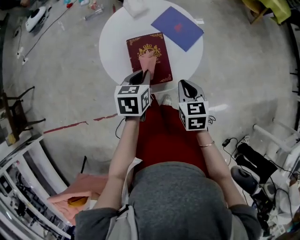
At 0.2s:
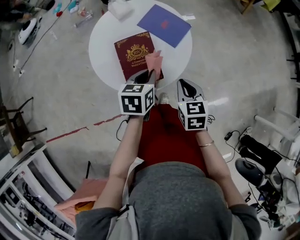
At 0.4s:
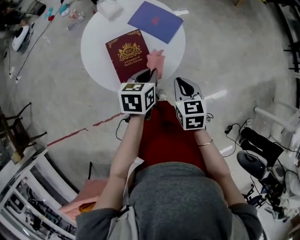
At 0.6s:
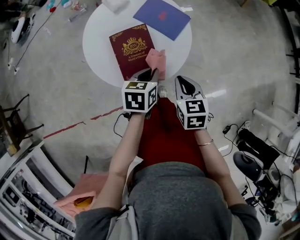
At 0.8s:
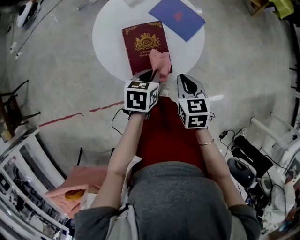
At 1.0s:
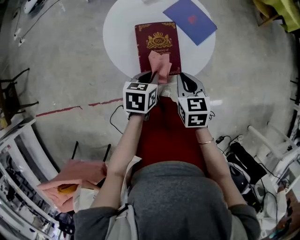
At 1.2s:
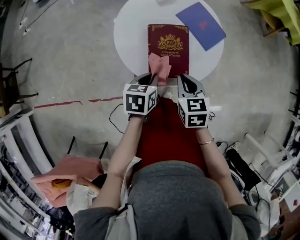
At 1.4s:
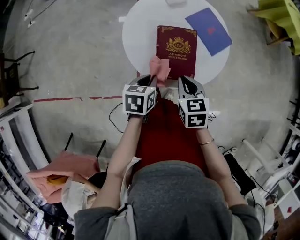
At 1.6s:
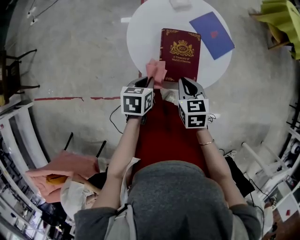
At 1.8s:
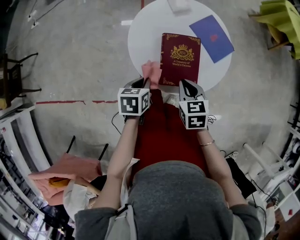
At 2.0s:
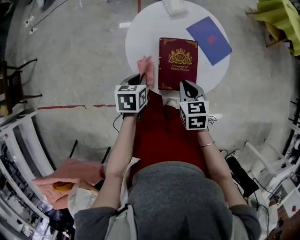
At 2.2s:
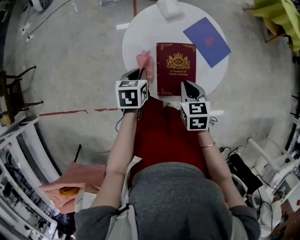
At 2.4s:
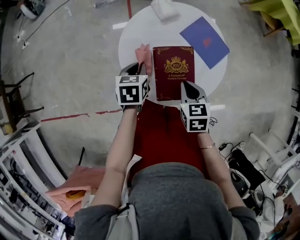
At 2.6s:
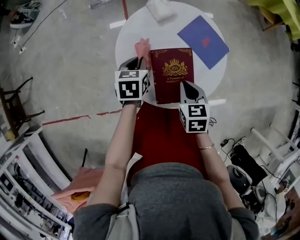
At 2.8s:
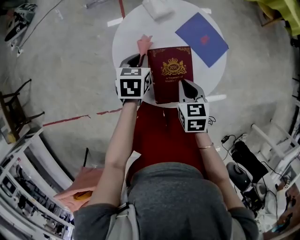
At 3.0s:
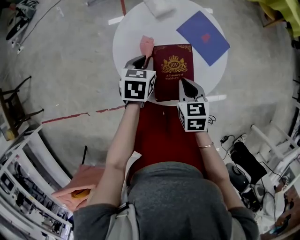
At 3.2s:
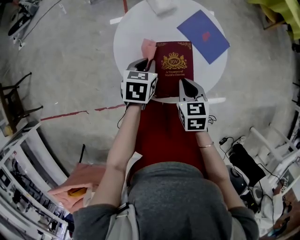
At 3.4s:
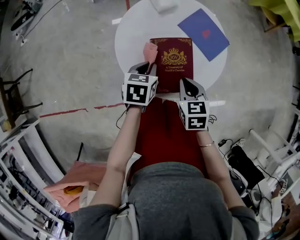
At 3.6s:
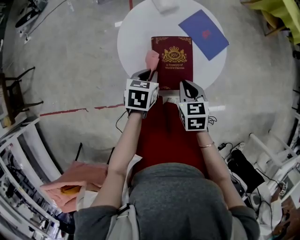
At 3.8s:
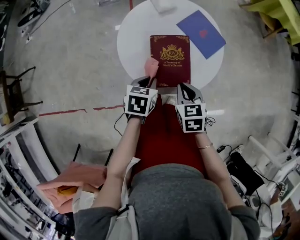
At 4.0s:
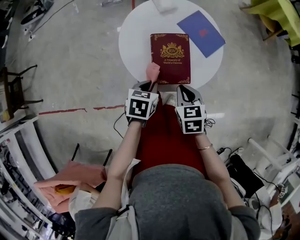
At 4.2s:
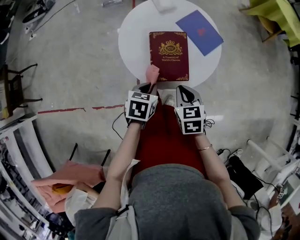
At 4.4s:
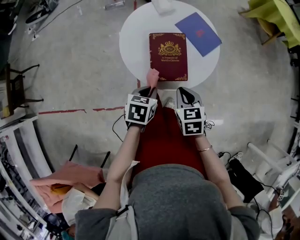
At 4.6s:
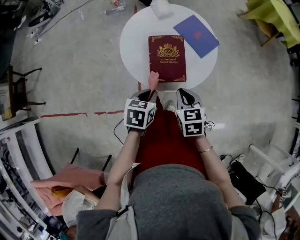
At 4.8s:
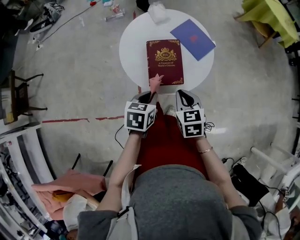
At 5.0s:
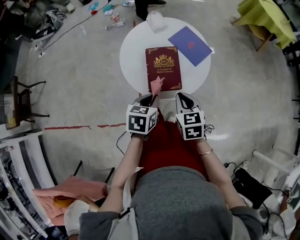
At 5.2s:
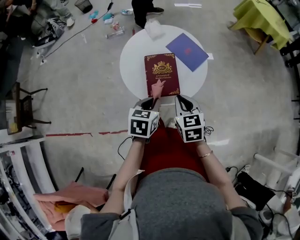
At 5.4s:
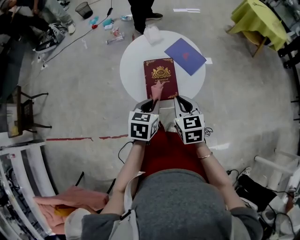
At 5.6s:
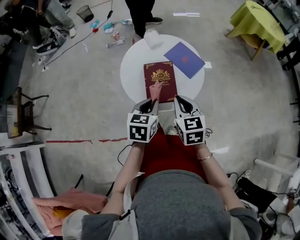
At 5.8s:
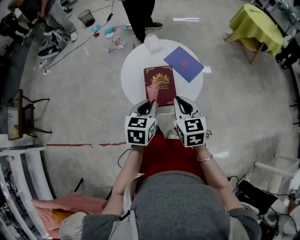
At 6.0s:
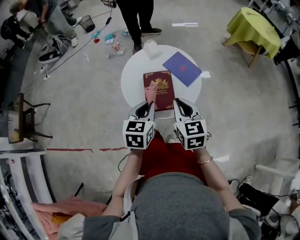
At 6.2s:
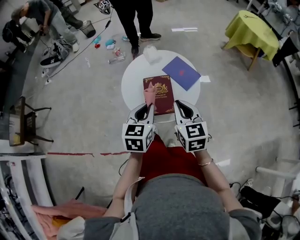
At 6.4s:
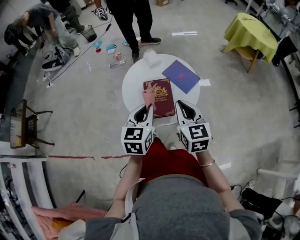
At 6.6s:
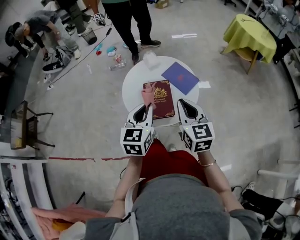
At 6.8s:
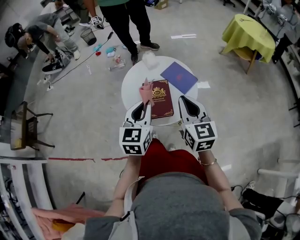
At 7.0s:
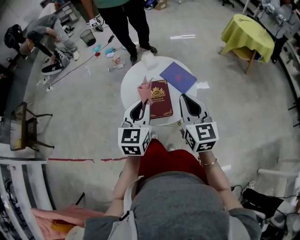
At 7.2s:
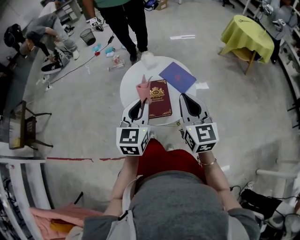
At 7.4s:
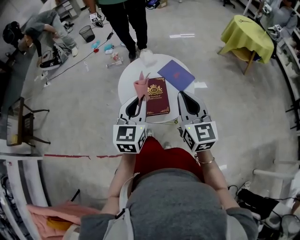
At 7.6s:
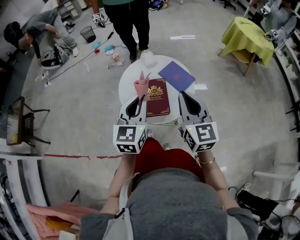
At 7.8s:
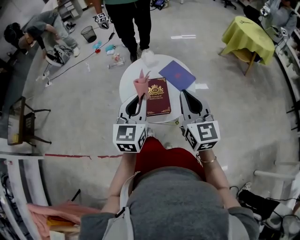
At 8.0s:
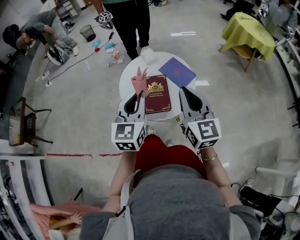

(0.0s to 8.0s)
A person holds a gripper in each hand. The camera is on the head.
0.0s - 1.6s: The right gripper is displaced to the left by some 10 cm. The left gripper moves backward, to the left and downward, about 10 cm.
1.6s - 3.2s: The left gripper goes about 15 cm forward. Meanwhile the right gripper heads forward, covering roughly 5 cm.
3.2s - 4.8s: The left gripper goes roughly 20 cm backward; the right gripper moves backward, roughly 10 cm.
4.8s - 6.4s: Both grippers move upward, roughly 15 cm. The right gripper rotates roughly 20 degrees, while the left gripper swivels about 30 degrees.
6.4s - 8.0s: Both grippers travel together upward, about 10 cm.

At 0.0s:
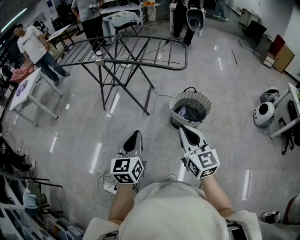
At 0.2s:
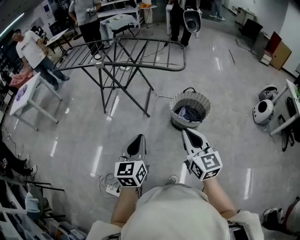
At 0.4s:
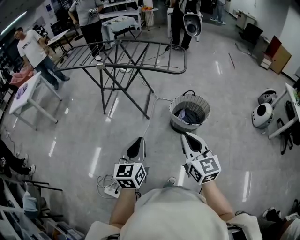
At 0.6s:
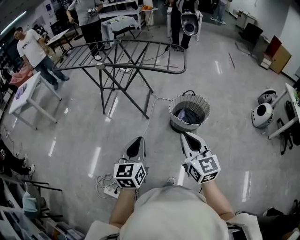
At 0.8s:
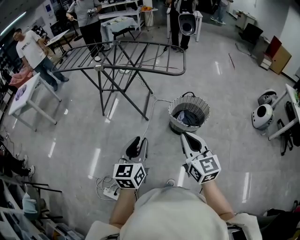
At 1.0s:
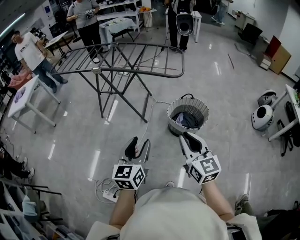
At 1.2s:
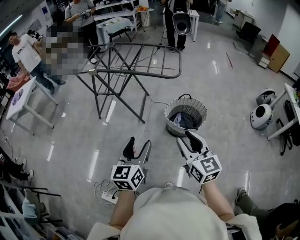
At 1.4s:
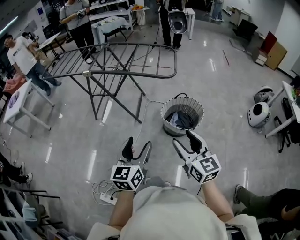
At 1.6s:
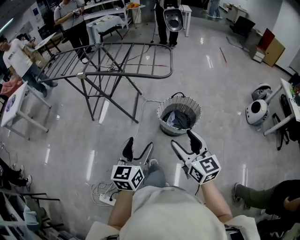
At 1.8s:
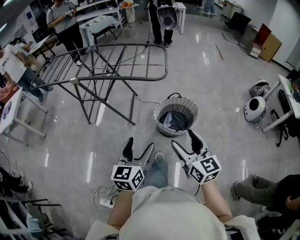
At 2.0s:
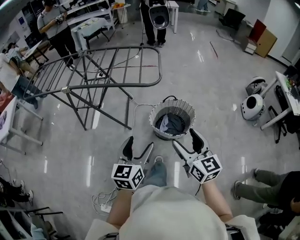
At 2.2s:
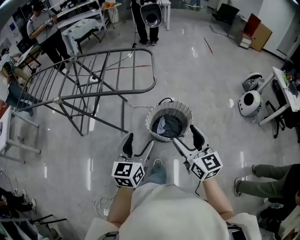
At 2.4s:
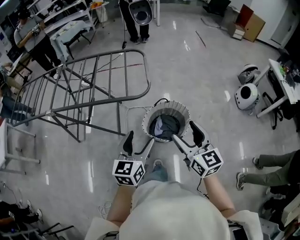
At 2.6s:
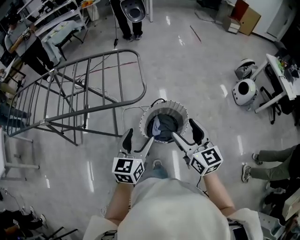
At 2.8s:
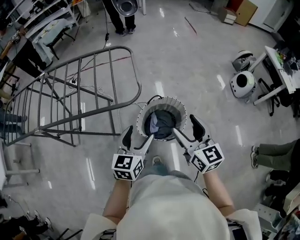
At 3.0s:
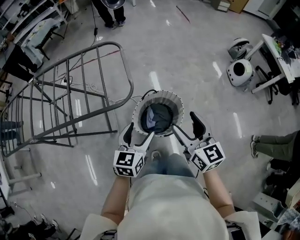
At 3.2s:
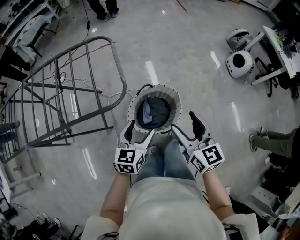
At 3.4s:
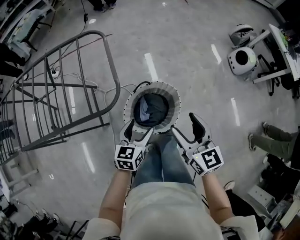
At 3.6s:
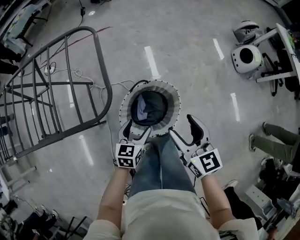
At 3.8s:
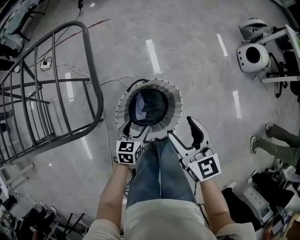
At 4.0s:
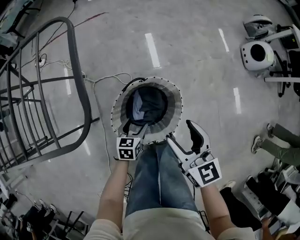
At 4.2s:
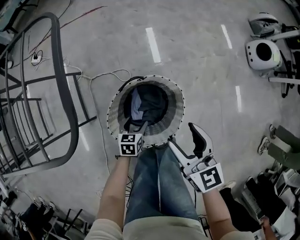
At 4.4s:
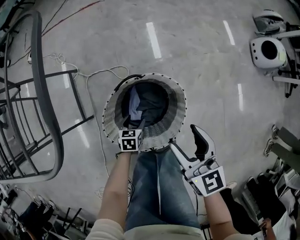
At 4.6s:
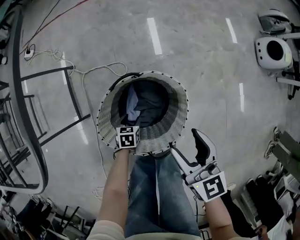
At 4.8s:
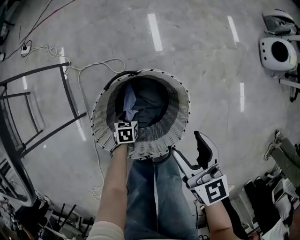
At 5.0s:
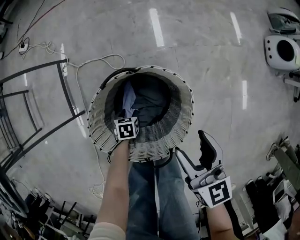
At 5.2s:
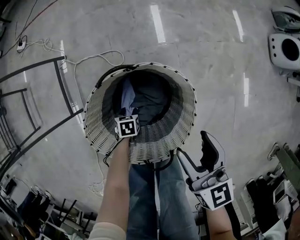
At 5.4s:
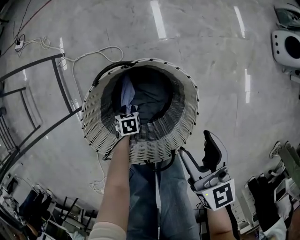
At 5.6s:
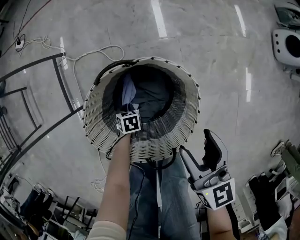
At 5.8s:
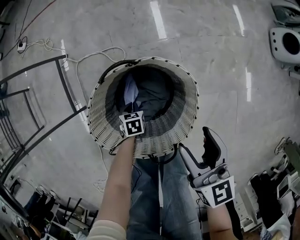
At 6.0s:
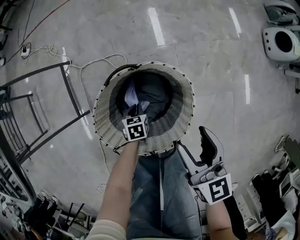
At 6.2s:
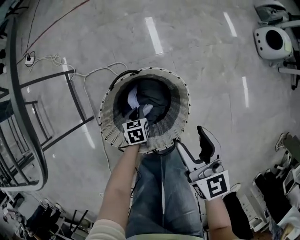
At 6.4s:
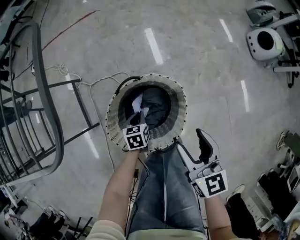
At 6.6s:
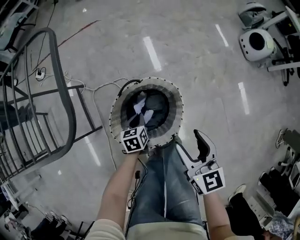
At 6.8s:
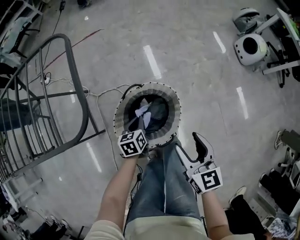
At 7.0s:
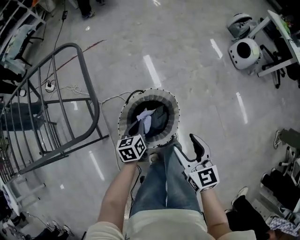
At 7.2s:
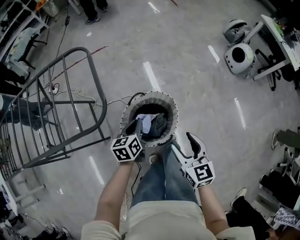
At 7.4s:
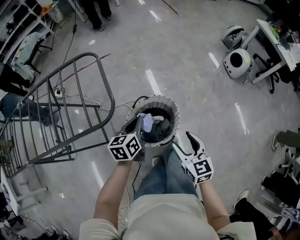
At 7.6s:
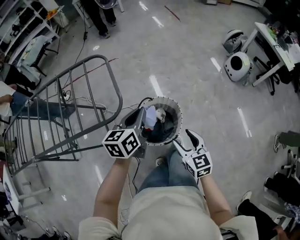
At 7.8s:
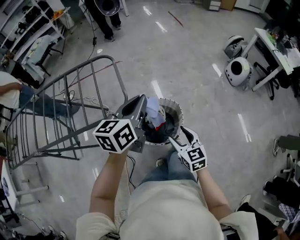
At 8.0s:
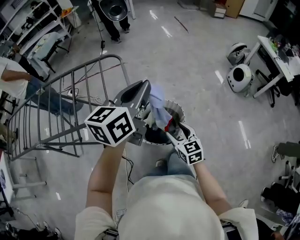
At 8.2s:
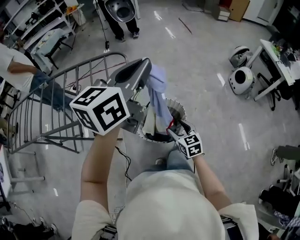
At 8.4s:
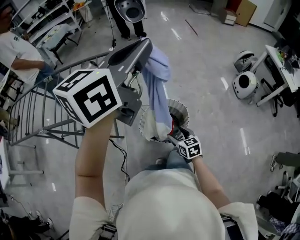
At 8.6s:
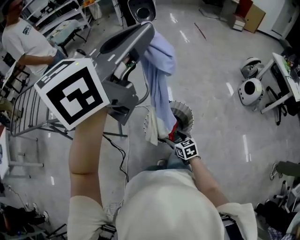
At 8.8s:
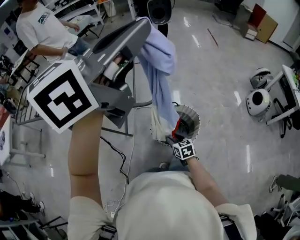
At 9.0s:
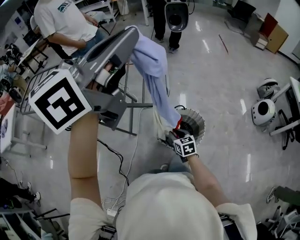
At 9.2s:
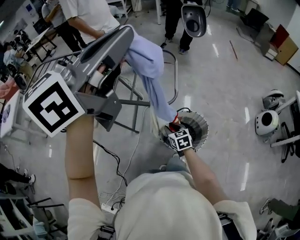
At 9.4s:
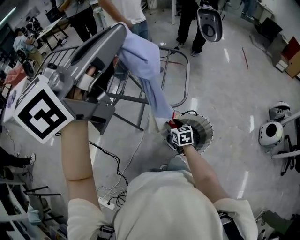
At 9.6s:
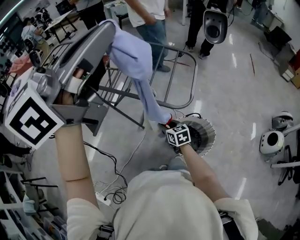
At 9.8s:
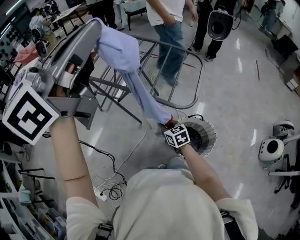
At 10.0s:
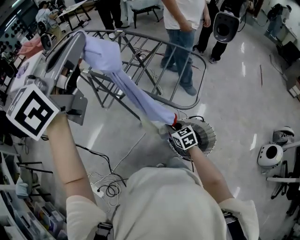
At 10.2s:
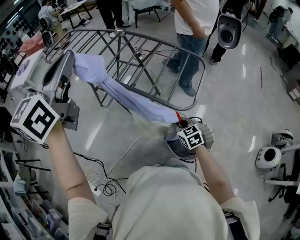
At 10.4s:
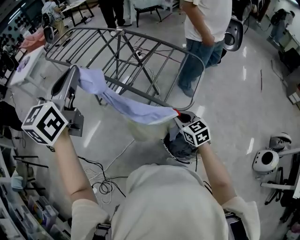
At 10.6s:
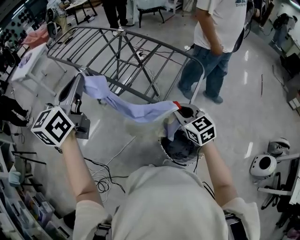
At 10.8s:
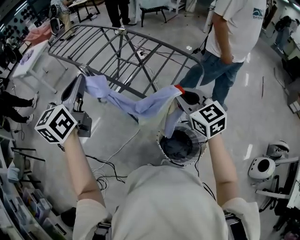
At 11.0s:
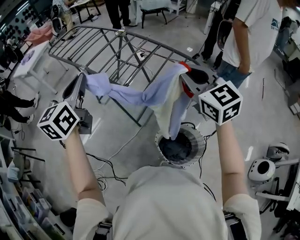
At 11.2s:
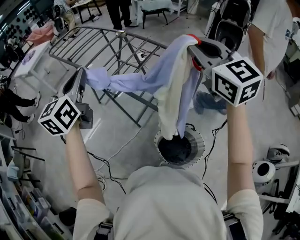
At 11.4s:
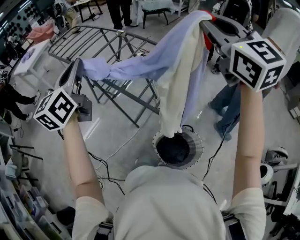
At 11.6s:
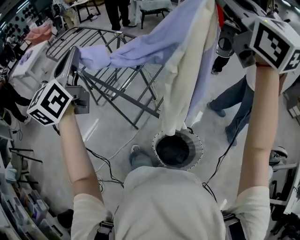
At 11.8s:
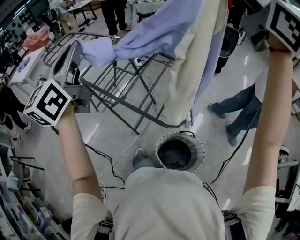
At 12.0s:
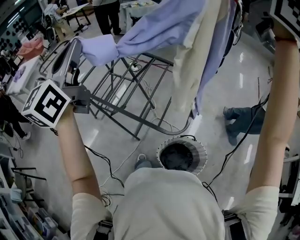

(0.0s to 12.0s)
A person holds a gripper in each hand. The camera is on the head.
0.0s - 1.6s: The left gripper goes roughly 10 cm to the right and forward, and opens. The right gripper goes roughly 5 cm to the right, and opens its fingers.
1.6s - 3.0s: The two grippers go approximately 35 cm forward. The left gripper turns by roughly 30 degrees; the right gripper swivels approximately 20 degrees.
3.0s - 4.4s: The right gripper is displaced downward and forward by about 35 cm. The left gripper is displaced downward by about 50 cm, and angles its fingers downward, by about 40 degrees.
4.4s - 6.0s: Both grippers travel together downward, about 10 cm. The left gripper closes up.
6.0s - 7.6s: The right gripper is displaced upward and backward by about 30 cm, while the left gripper travels upward by about 60 cm, and tilts its fingers some 50 degrees upward.
7.6s - 9.0s: The right gripper is displaced to the left and downward by some 20 cm, changes its angle by some 20 degrees, and closes up. The left gripper heads upward, covering approximately 40 cm, and rotates about 30 degrees.
9.0s - 10.4s: The right gripper shifts some 15 cm upward, and rotates about 40 degrees, while the left gripper changes place by roughly 30 cm, and rotates about 60 degrees.
10.4s - 12.0s: The left gripper travels forward, upward and to the right by about 15 cm. Meanwhile the right gripper travels upward by approximately 60 cm, and points its fingers some 40 degrees further upward.

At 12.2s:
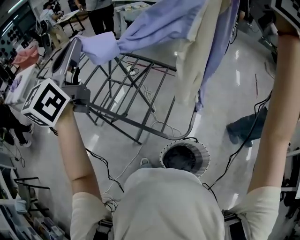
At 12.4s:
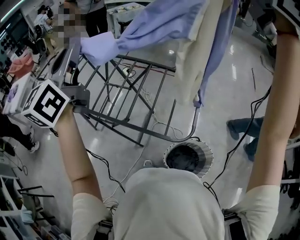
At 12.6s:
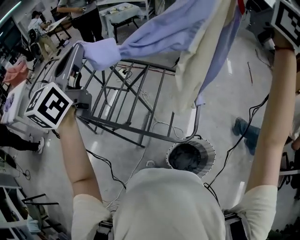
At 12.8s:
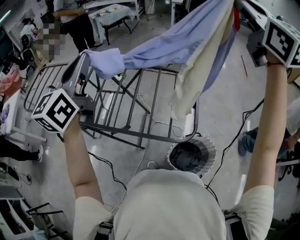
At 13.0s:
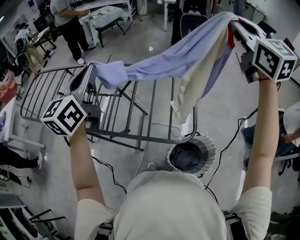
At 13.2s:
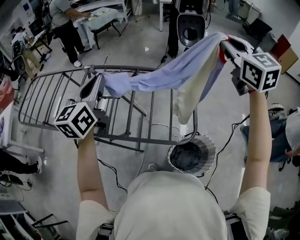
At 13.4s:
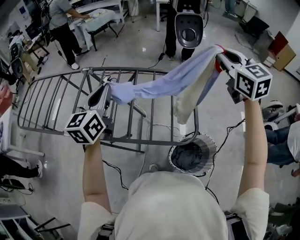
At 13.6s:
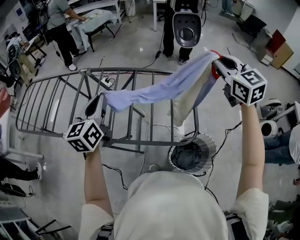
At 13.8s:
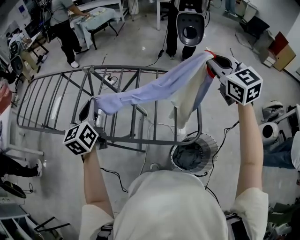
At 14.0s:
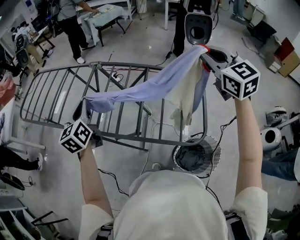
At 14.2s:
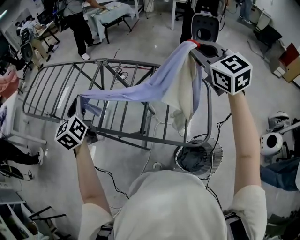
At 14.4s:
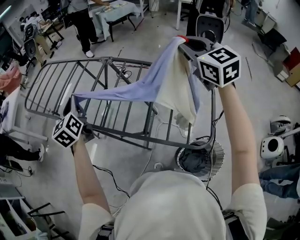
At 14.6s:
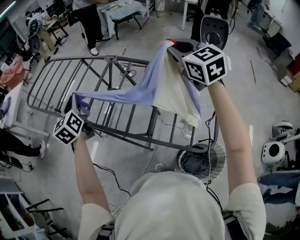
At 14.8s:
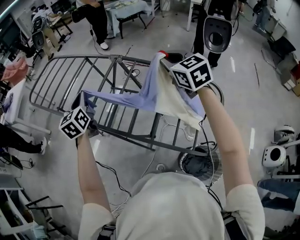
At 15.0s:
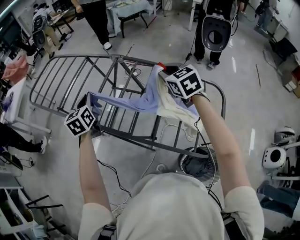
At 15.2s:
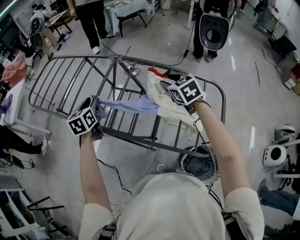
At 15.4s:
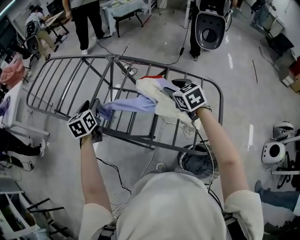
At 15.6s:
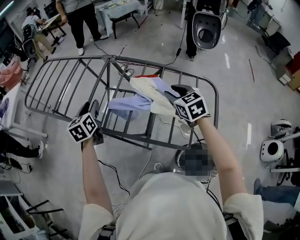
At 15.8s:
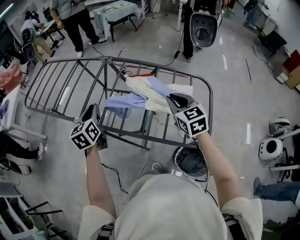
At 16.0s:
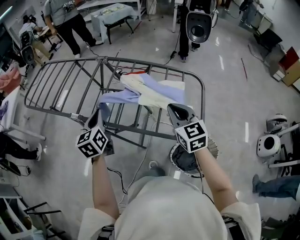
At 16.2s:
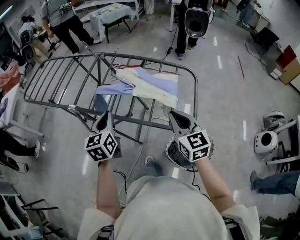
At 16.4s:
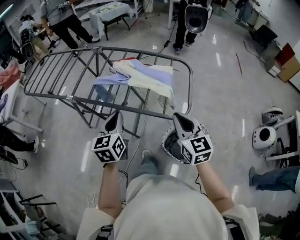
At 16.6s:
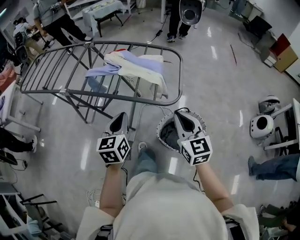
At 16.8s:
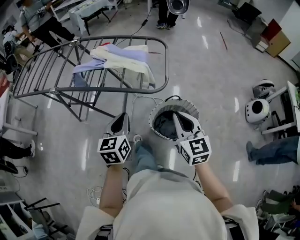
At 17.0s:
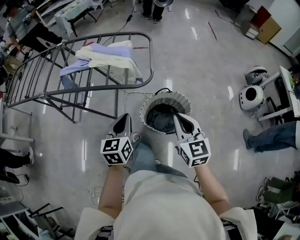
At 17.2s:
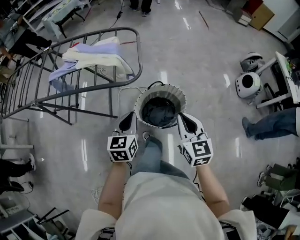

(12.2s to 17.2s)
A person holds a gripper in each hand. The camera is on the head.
12.2s - 13.8s: The right gripper moves downward, about 25 cm, and rotates some 20 degrees, while the left gripper goes approximately 30 cm downward and forward, and rotates approximately 30 degrees.
13.8s - 15.6s: The left gripper goes some 15 cm to the left, downward and forward, rotates roughly 20 degrees, and opens its fingers; the right gripper is displaced downward, to the left and forward by some 30 cm, swivels roughly 20 degrees, and opens up.
15.6s - 17.2s: The two grippers travel together, roughly 60 cm. The right gripper rotates roughly 40 degrees, and closes its fingers. The left gripper changes its angle by roughly 40 degrees, and closes.
